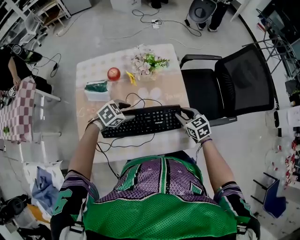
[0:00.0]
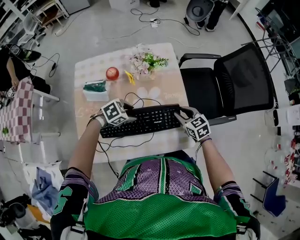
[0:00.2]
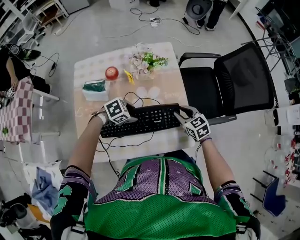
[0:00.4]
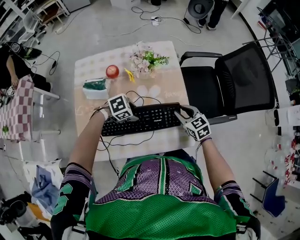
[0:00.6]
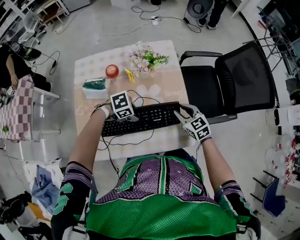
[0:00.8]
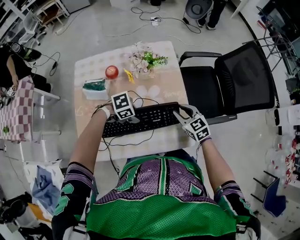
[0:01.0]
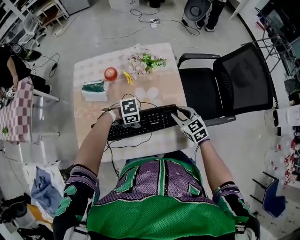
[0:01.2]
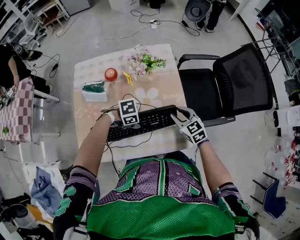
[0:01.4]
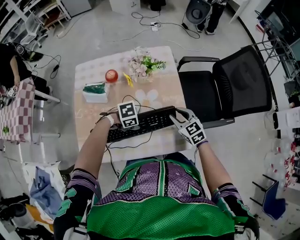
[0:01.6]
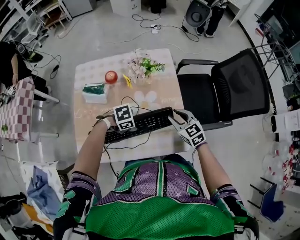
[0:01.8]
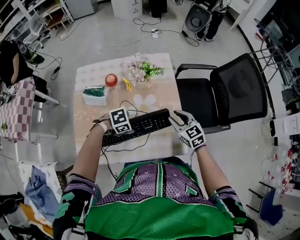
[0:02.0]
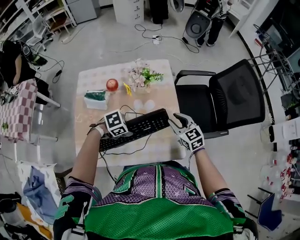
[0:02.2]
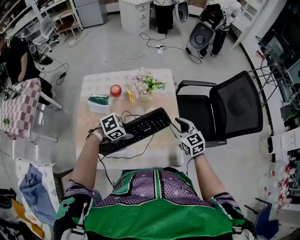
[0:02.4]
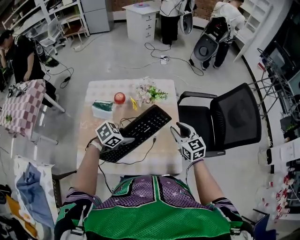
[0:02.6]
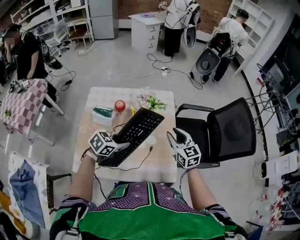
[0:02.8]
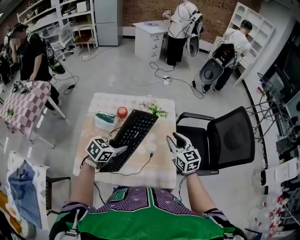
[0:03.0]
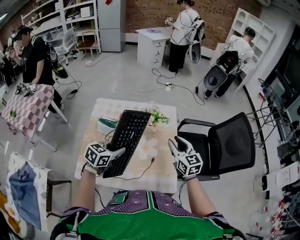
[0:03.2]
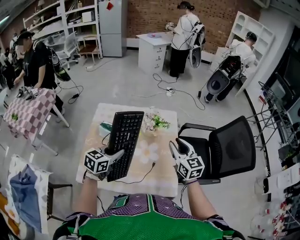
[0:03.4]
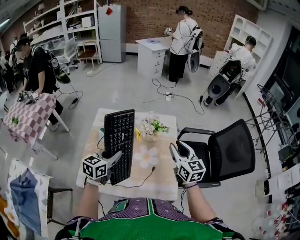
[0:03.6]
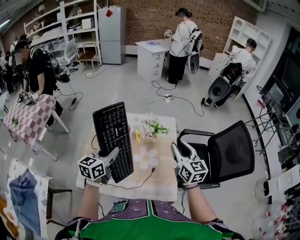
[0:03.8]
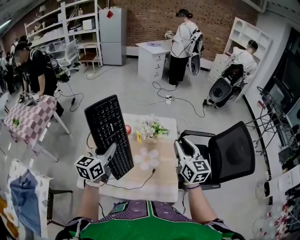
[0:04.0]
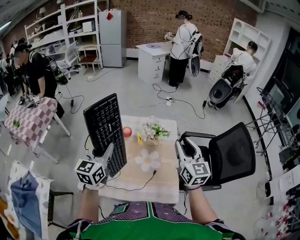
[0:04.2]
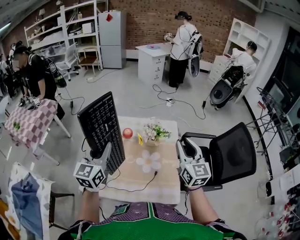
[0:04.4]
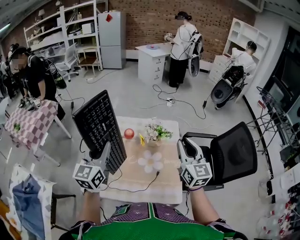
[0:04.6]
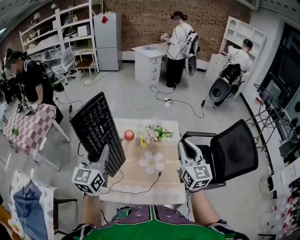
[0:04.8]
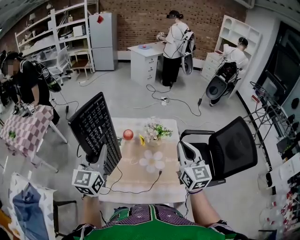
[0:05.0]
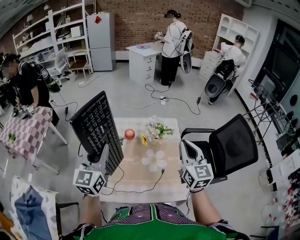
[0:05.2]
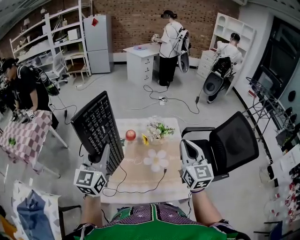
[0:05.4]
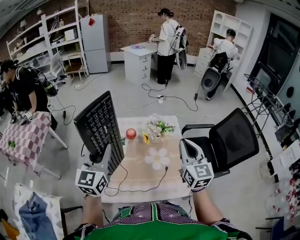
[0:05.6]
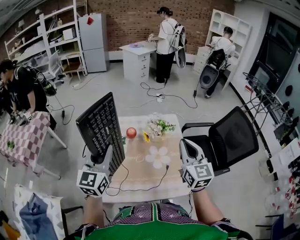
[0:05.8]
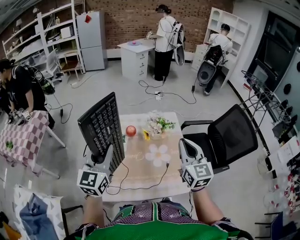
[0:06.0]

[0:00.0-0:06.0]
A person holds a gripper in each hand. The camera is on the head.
0:00.0 to 0:01.6: The left gripper changes place by roughly 10 cm, rotates approximately 30 degrees, and closes.
0:01.6 to 0:03.0: The two grippers go some 15 cm upward. The left gripper swivels approximately 60 degrees.
0:03.0 to 0:04.4: The right gripper moves upward, approximately 15 cm. The left gripper heads upward and to the left, covering some 20 cm, and angles its fingers upward, by about 30 degrees.
0:04.4 to 0:06.0: The left gripper moves to the left, about 5 cm; the right gripper shifts about 10 cm to the left and backward, and closes.

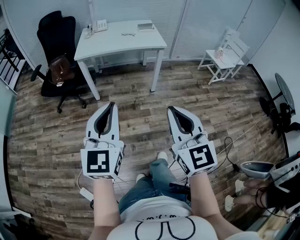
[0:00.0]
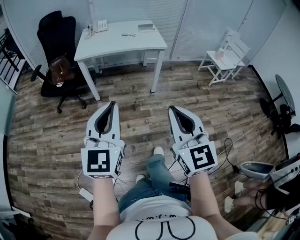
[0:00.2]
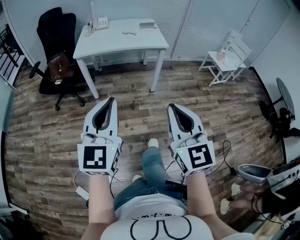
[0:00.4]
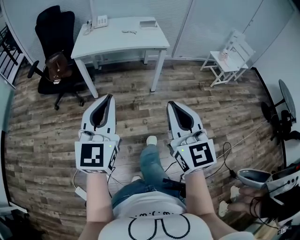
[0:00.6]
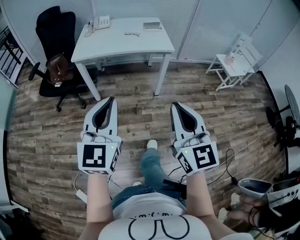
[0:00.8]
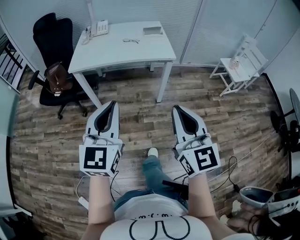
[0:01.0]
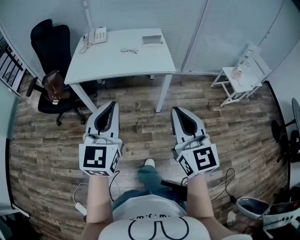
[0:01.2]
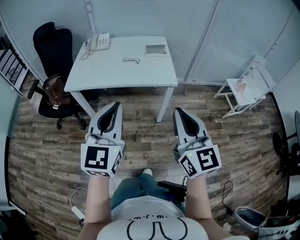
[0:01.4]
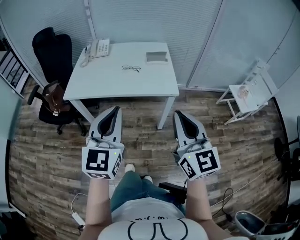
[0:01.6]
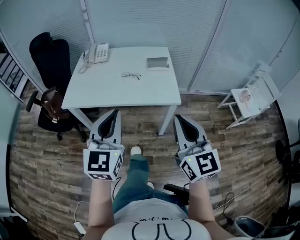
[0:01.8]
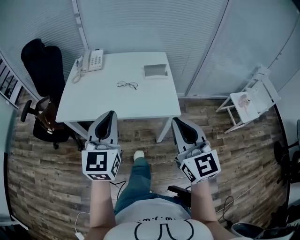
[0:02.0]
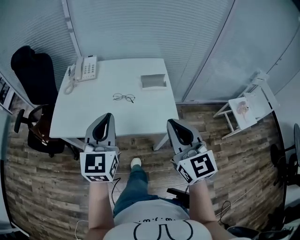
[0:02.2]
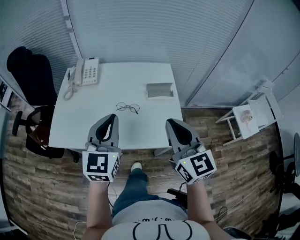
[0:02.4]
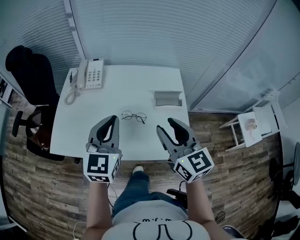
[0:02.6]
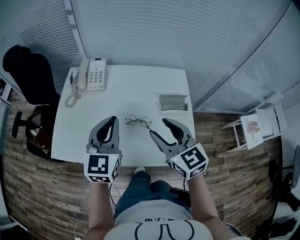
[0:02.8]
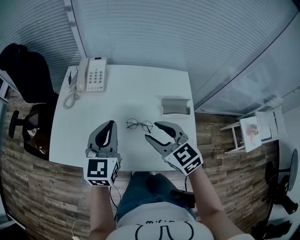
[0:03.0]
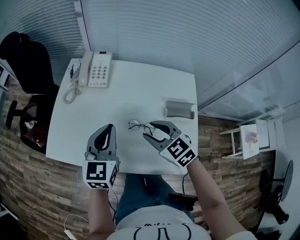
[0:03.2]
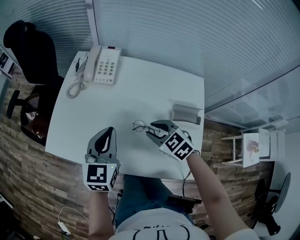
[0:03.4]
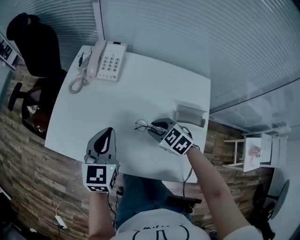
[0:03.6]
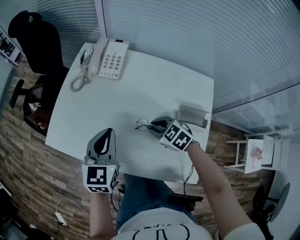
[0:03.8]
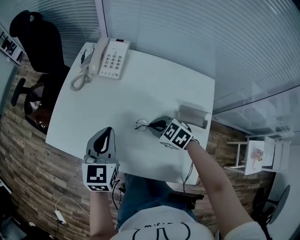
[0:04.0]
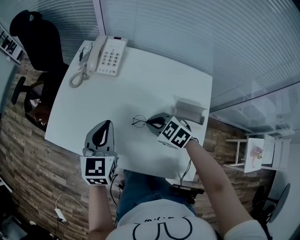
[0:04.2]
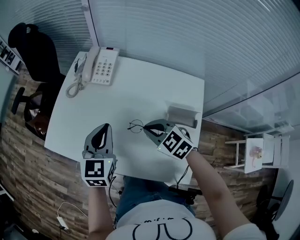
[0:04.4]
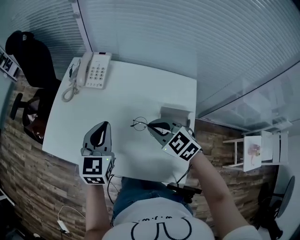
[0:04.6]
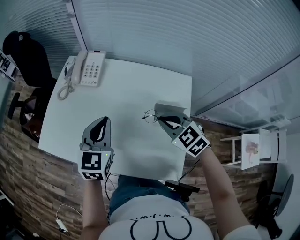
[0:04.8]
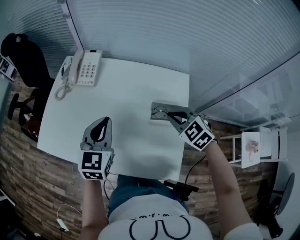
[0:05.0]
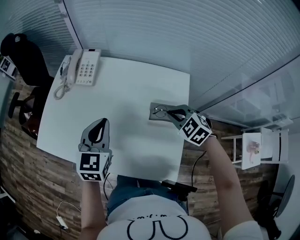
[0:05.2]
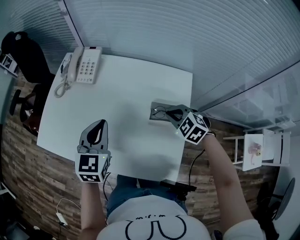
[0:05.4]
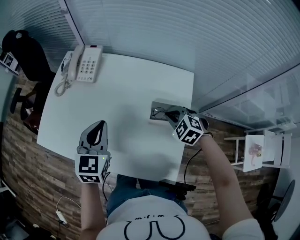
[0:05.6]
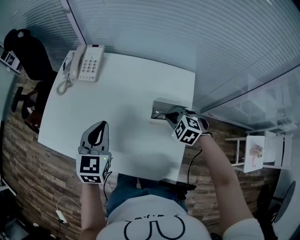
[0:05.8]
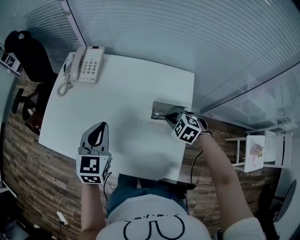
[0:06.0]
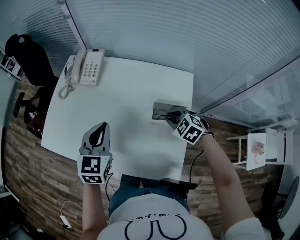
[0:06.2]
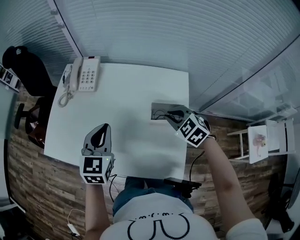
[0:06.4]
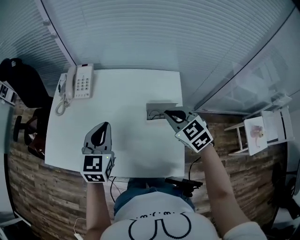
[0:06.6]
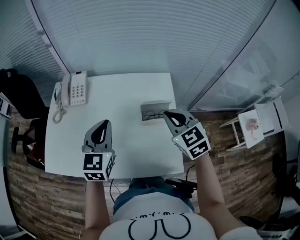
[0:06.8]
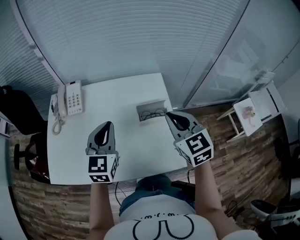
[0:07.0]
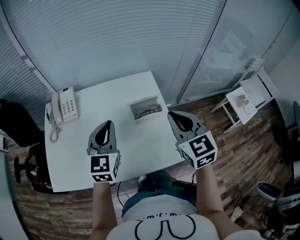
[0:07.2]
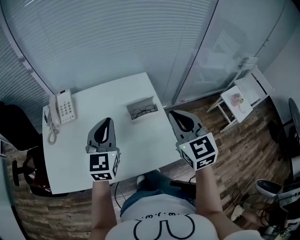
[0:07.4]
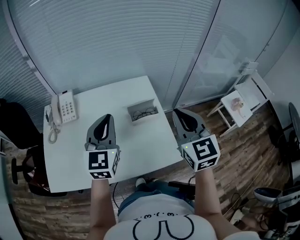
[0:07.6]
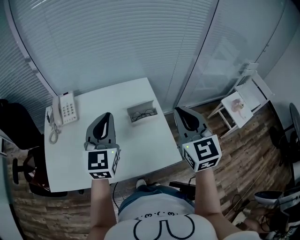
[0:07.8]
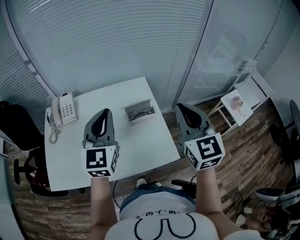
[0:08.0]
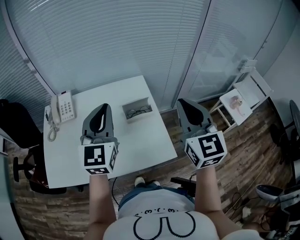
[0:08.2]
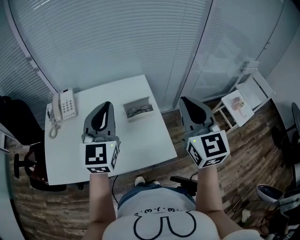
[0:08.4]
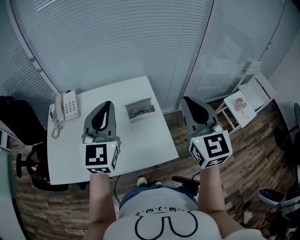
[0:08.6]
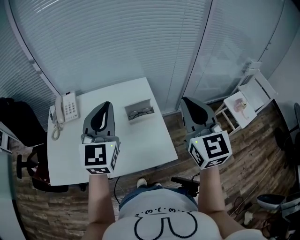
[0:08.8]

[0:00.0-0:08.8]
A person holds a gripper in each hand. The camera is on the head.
0:00.0 to 0:01.4: Both grippers are carried forward, about 40 cm.
0:01.4 to 0:03.0: Both grippers are carried forward, about 50 cm. The right gripper tips its fingers downward by some 30 degrees, and opens up.
0:03.0 to 0:04.4: The right gripper goes approximately 10 cm downward and forward, changes its angle by about 30 degrees, and closes. The left gripper moves downward, about 5 cm.
0:04.4 to 0:05.8: The right gripper shifts some 20 cm to the right, and swivels approximately 30 degrees. The left gripper travels to the right by some 10 cm.
0:05.8 to 0:07.4: The right gripper heads upward, covering some 25 cm, and tips its fingers upward by approximately 40 degrees, while the left gripper is displaced upward by about 10 cm, and turns by some 30 degrees.
0:07.4 to 0:08.8: Both grippers move upward and to the right, roughly 10 cm.

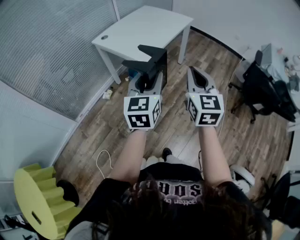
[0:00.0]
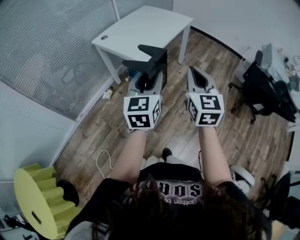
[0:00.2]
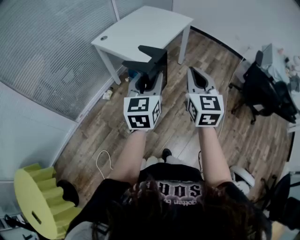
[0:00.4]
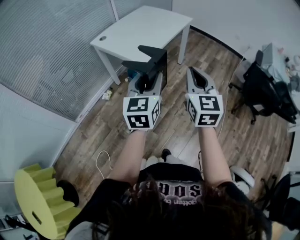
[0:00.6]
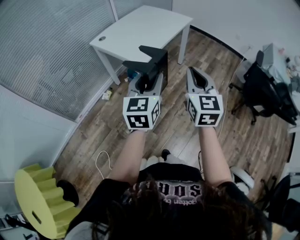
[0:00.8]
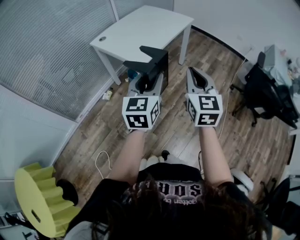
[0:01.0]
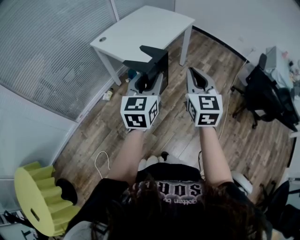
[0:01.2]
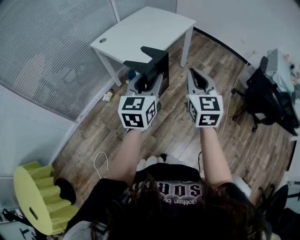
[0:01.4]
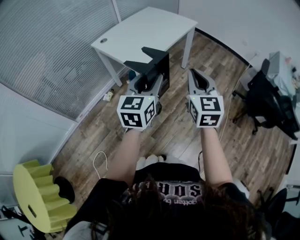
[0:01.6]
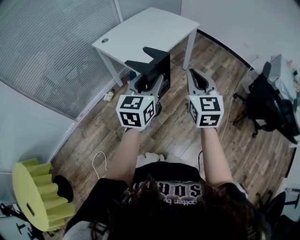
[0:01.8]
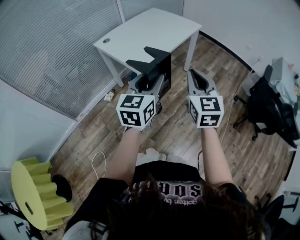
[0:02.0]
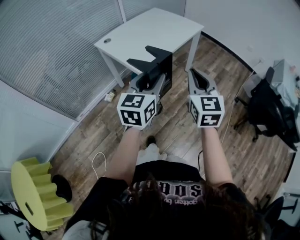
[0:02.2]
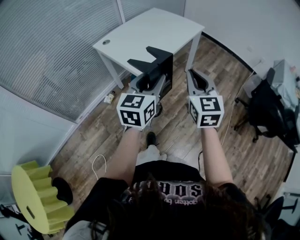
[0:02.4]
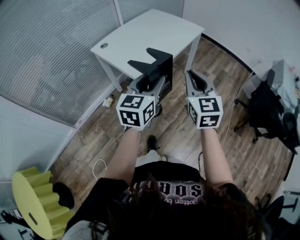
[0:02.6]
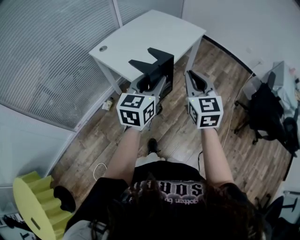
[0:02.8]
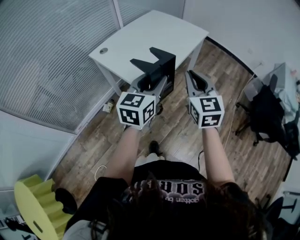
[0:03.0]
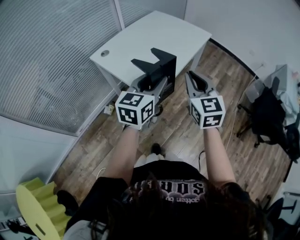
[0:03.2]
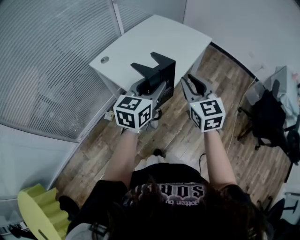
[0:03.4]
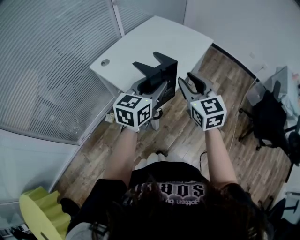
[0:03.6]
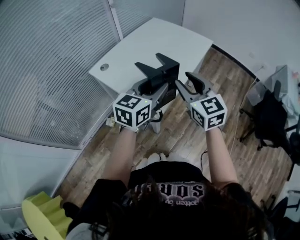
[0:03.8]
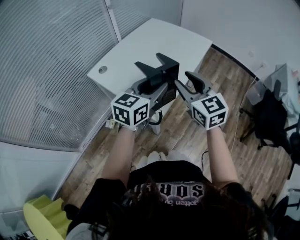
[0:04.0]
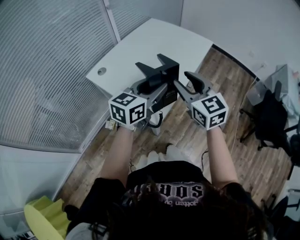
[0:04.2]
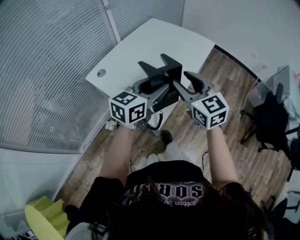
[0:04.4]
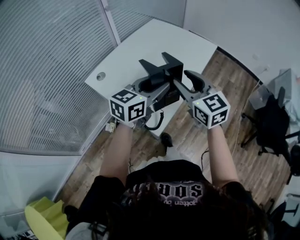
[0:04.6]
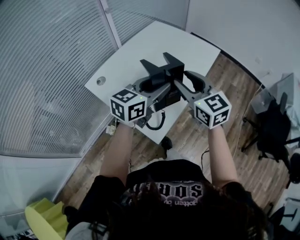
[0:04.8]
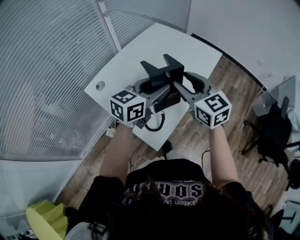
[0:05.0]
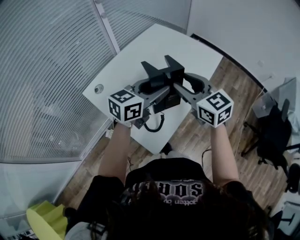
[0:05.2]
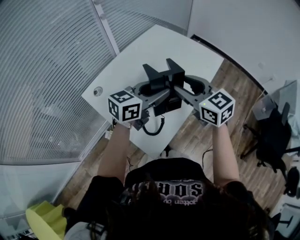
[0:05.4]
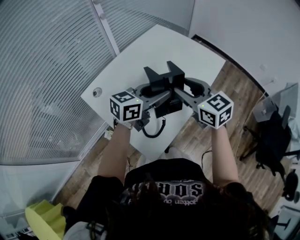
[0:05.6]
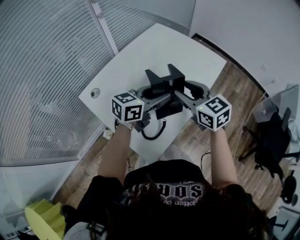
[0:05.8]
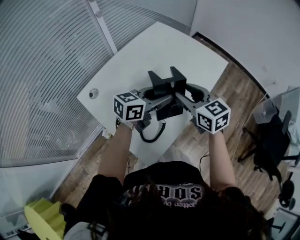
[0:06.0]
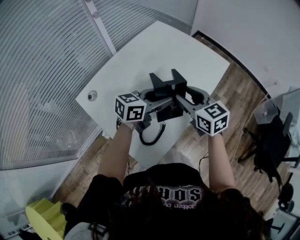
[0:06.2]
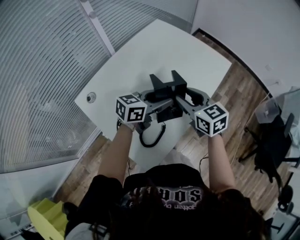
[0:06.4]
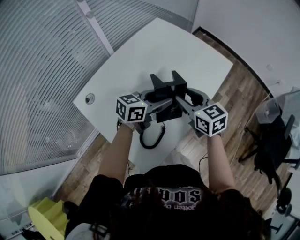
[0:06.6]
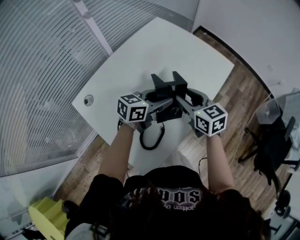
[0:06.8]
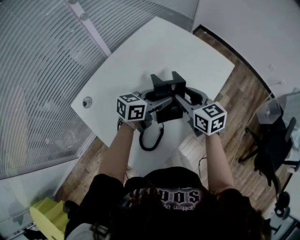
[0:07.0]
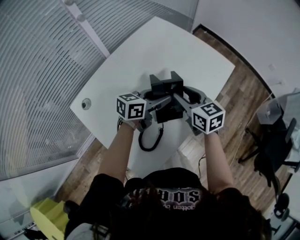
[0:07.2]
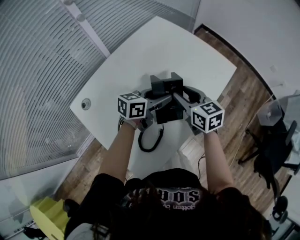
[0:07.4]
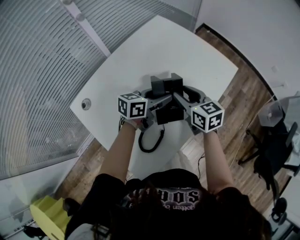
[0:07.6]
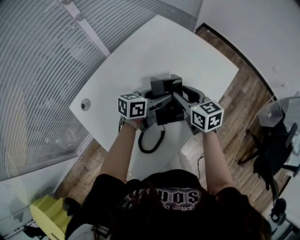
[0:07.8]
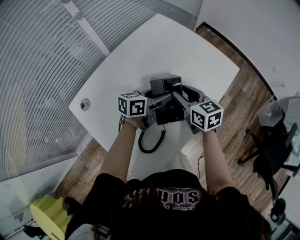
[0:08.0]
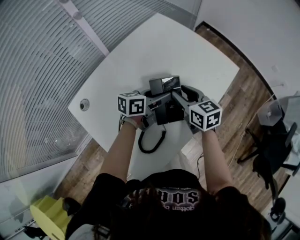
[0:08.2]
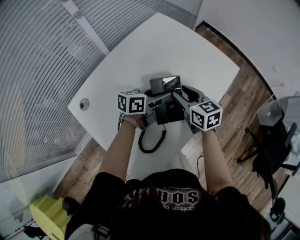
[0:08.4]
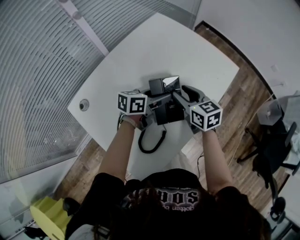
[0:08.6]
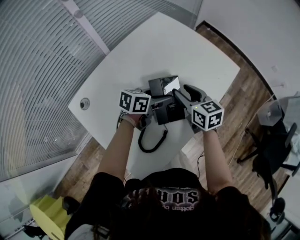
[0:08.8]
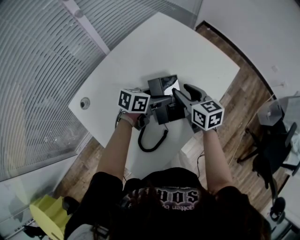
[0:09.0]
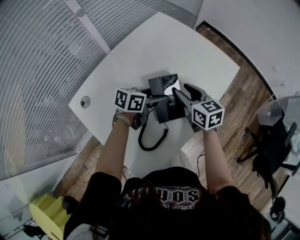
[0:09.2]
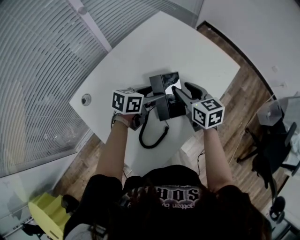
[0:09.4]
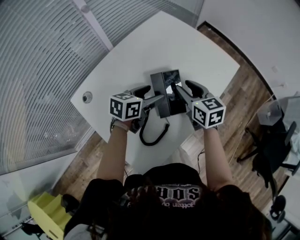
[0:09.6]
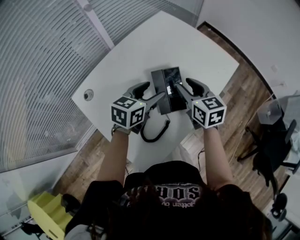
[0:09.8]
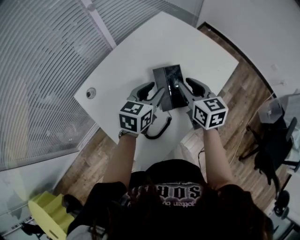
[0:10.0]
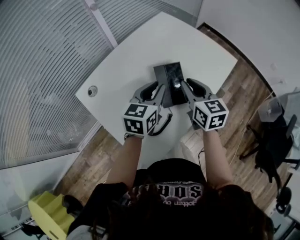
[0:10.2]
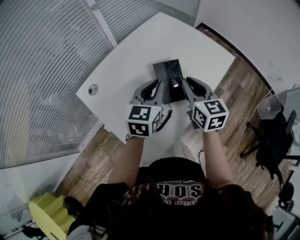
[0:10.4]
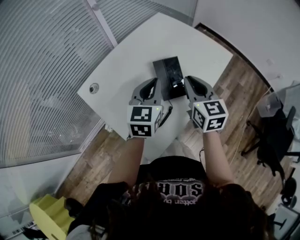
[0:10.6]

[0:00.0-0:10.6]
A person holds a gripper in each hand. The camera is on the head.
0:00.0 to 0:01.6: Both grippers move forward and to the right, about 10 cm.
0:01.6 to 0:03.0: The left gripper travels forward by about 15 cm, while the right gripper goes some 20 cm forward and to the left.
0:03.0 to 0:04.6: The right gripper moves forward and to the left, roughly 20 cm, and opens its fingers, while the left gripper shifts approximately 20 cm forward, and rotates some 20 degrees.
0:04.6 to 0:06.0: Both grippers move forward and downward, roughly 20 cm.
0:06.0 to 0:07.6: The grippers both shift forward and downward by approximately 15 cm.
0:07.6 to 0:09.0: The left gripper opens its fingers.
0:09.0 to 0:10.6: The grippers both shift upward and backward by roughly 15 cm. The right gripper swivels about 20 degrees, and closes up, while the left gripper changes its angle by roughly 50 degrees, and closes its fingers.
